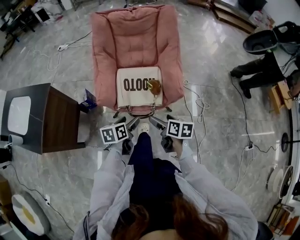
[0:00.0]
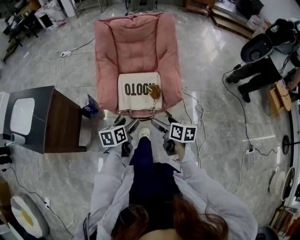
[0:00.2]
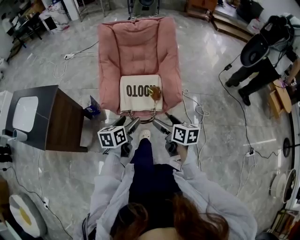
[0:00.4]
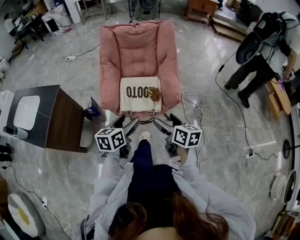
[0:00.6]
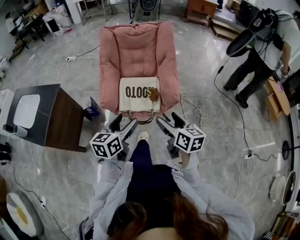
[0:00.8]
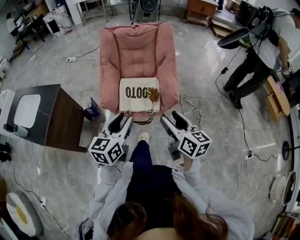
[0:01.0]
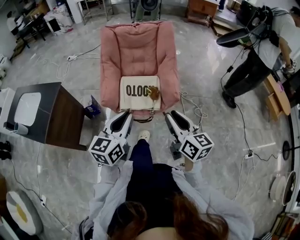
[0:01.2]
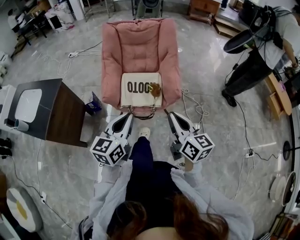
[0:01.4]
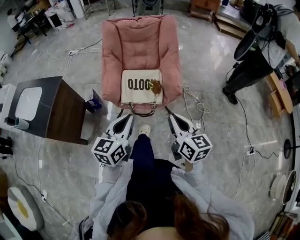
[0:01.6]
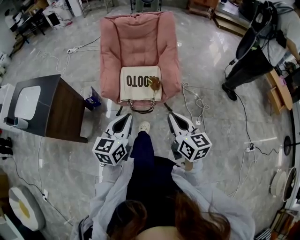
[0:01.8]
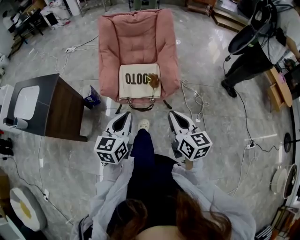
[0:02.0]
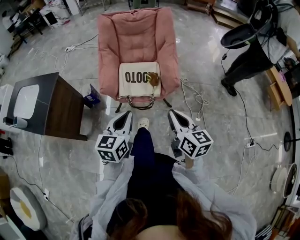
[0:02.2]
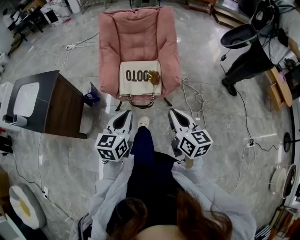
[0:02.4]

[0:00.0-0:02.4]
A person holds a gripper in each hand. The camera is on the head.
0:00.0 to 0:01.2: The left gripper is displaced upward by about 25 cm, tilts its fingers roughly 30 degrees upward, and closes up. Meanwhile the right gripper moves upward and backward, some 25 cm, changes its angle by some 40 degrees, and closes.
0:01.2 to 0:02.4: The left gripper goes approximately 5 cm downward, while the right gripper moves some 5 cm.

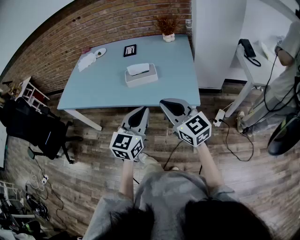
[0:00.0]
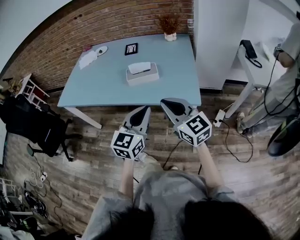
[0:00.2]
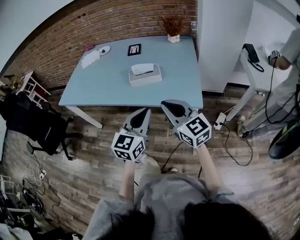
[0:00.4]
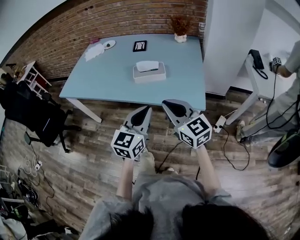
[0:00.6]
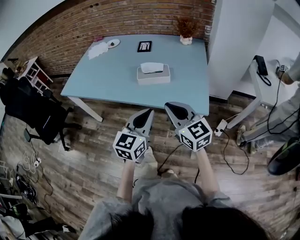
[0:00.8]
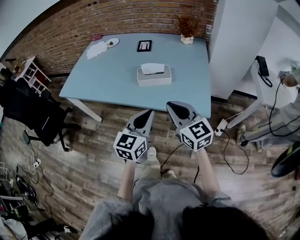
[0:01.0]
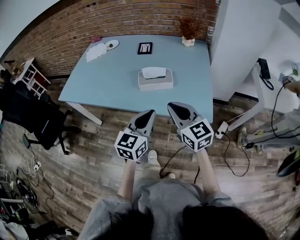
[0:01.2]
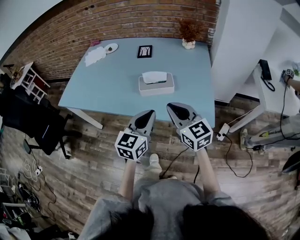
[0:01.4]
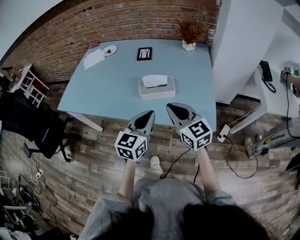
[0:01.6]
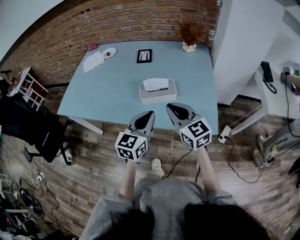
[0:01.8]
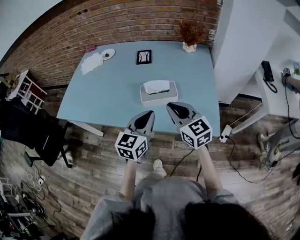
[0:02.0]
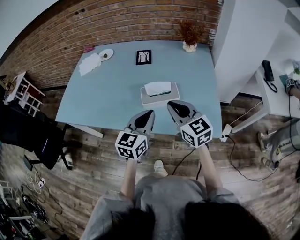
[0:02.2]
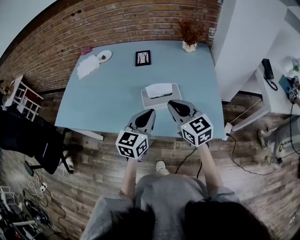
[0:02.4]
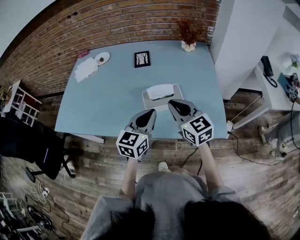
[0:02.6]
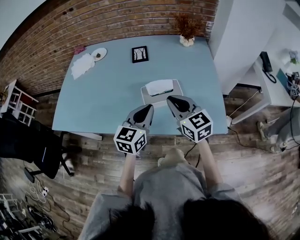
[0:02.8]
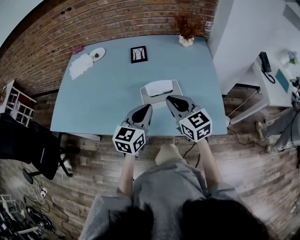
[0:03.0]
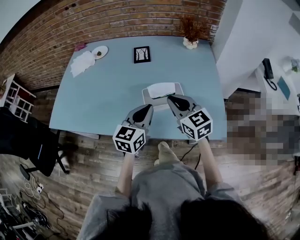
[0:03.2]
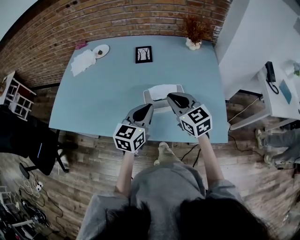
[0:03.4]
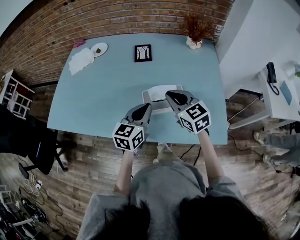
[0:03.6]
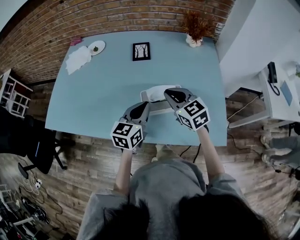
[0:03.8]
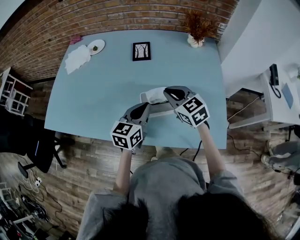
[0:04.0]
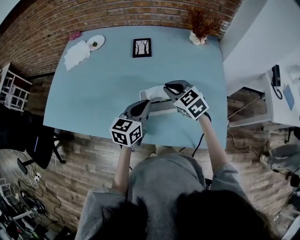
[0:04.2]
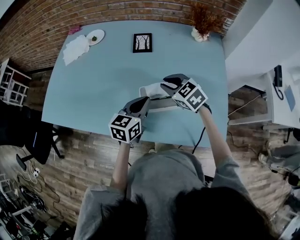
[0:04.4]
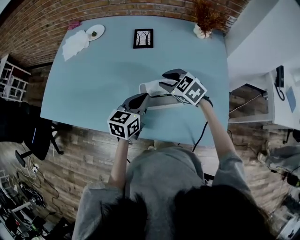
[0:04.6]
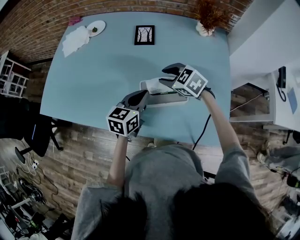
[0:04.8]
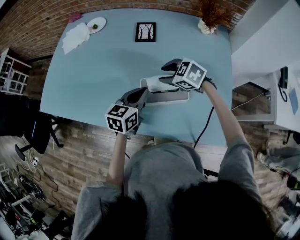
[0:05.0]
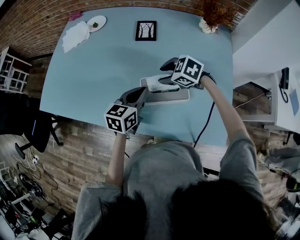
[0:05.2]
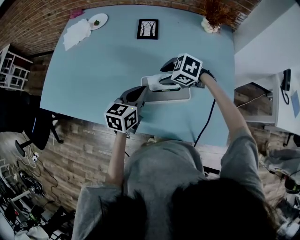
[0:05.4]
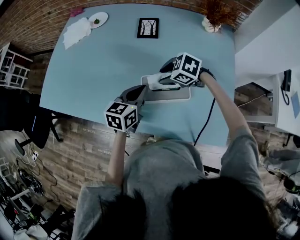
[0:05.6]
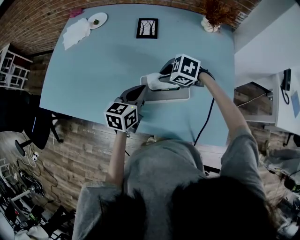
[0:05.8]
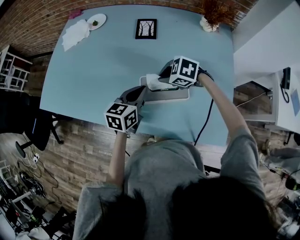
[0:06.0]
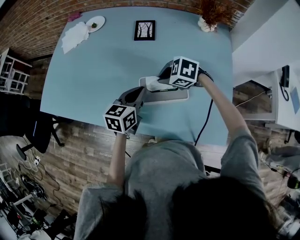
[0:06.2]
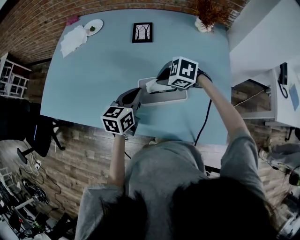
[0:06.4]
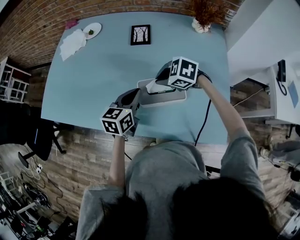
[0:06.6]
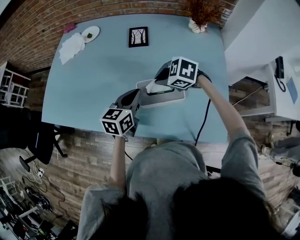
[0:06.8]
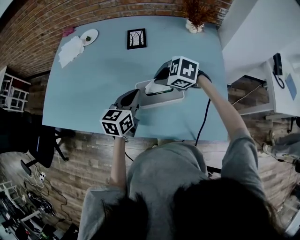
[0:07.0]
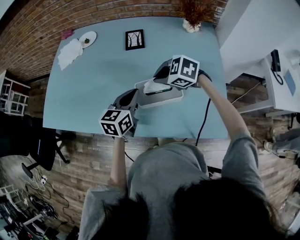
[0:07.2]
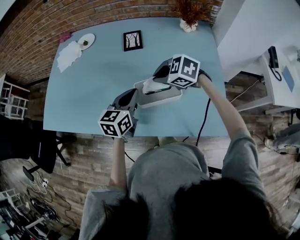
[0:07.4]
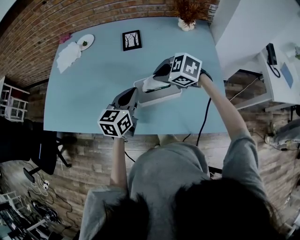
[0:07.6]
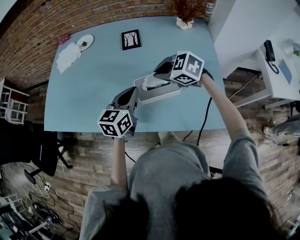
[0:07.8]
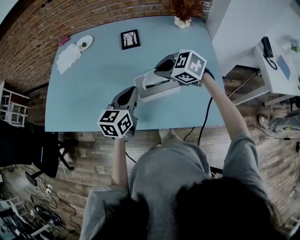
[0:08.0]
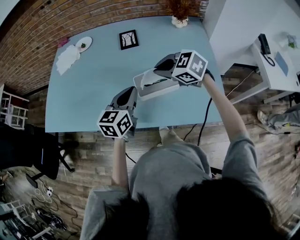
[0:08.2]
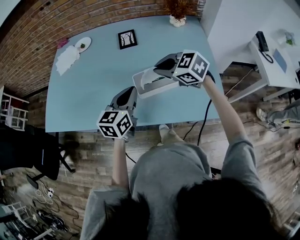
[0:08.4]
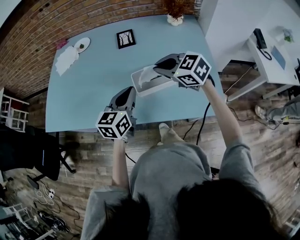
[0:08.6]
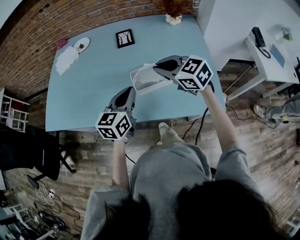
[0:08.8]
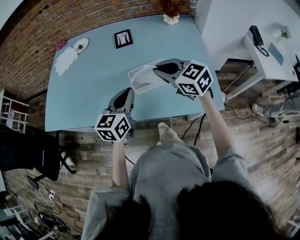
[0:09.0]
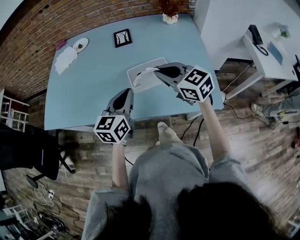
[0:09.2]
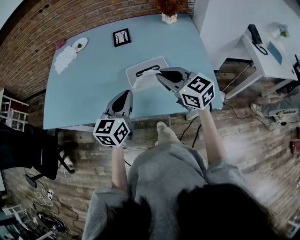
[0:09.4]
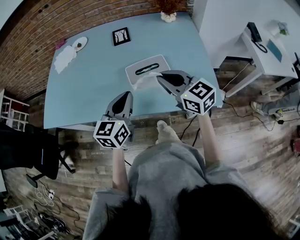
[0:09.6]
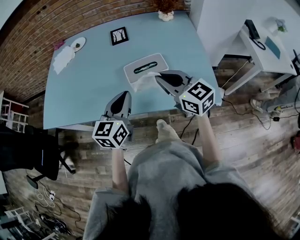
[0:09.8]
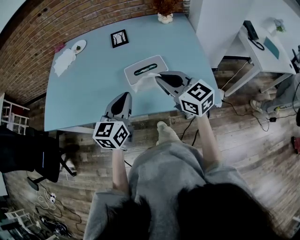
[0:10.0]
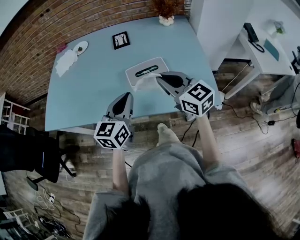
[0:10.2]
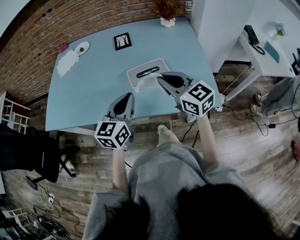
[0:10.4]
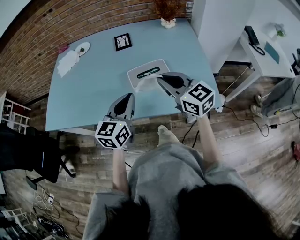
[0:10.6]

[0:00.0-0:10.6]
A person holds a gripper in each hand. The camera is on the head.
0:00.0 to 0:01.6: The two grippers go some 15 cm forward.
0:01.6 to 0:03.0: The left gripper moves forward and to the left, some 15 cm; the right gripper heads forward, covering roughly 15 cm.
0:03.0 to 0:04.6: The grippers both shift forward and downward by about 15 cm. The right gripper swivels about 40 degrees, and opens its fingers.
0:04.6 to 0:06.0: The right gripper moves about 5 cm, swivels some 30 degrees, and closes its fingers.
0:06.0 to 0:07.6: The right gripper goes approximately 10 cm upward, while the left gripper shifts approximately 5 cm upward.
0:07.6 to 0:09.0: The left gripper shifts roughly 10 cm backward; the right gripper heads backward and upward, covering about 10 cm, and rotates roughly 40 degrees.
0:09.0 to 0:10.6: The grippers both shift backward by some 5 cm.

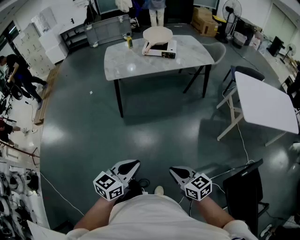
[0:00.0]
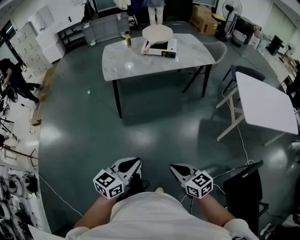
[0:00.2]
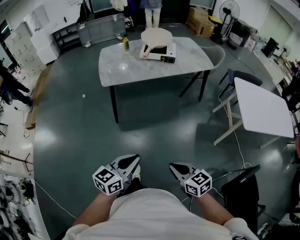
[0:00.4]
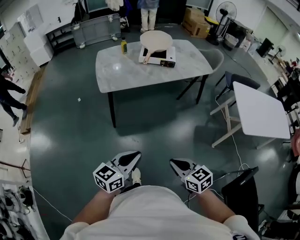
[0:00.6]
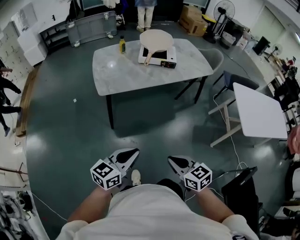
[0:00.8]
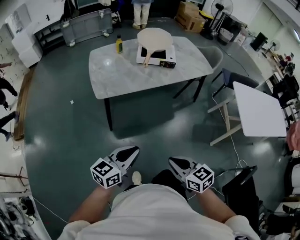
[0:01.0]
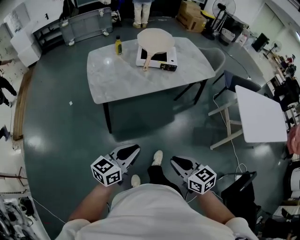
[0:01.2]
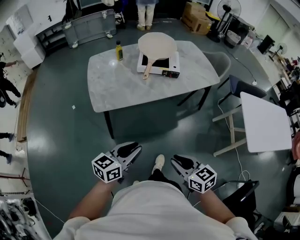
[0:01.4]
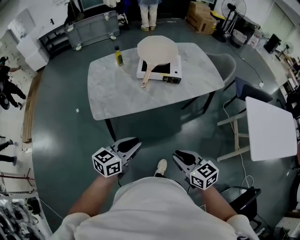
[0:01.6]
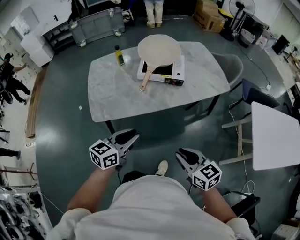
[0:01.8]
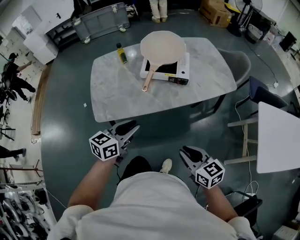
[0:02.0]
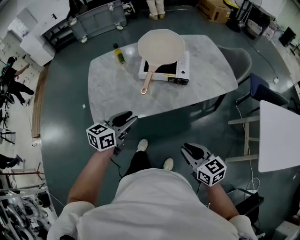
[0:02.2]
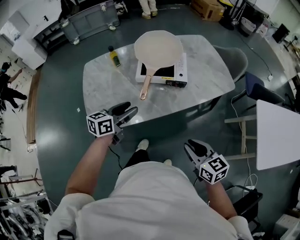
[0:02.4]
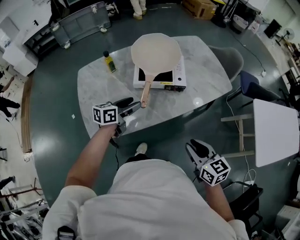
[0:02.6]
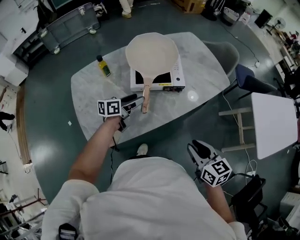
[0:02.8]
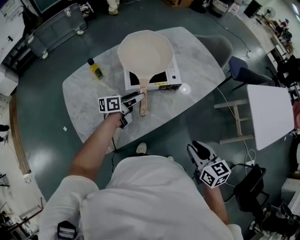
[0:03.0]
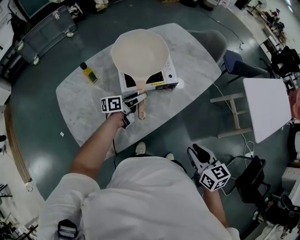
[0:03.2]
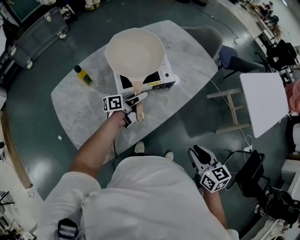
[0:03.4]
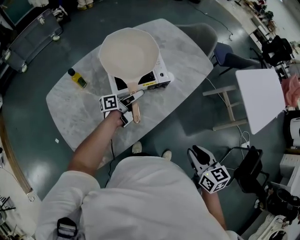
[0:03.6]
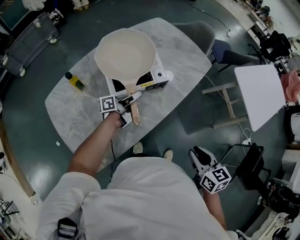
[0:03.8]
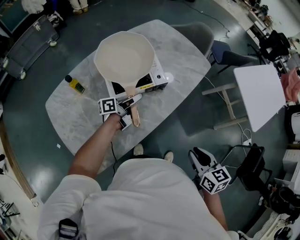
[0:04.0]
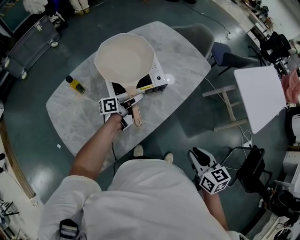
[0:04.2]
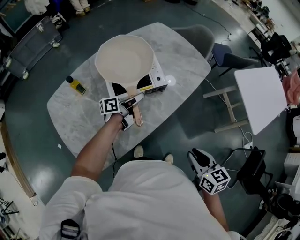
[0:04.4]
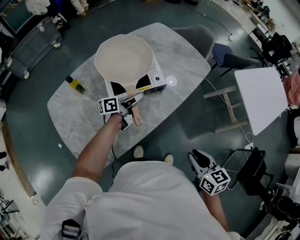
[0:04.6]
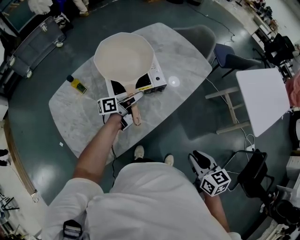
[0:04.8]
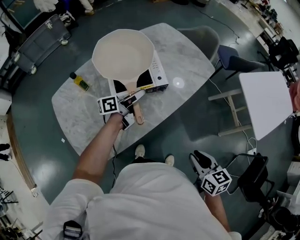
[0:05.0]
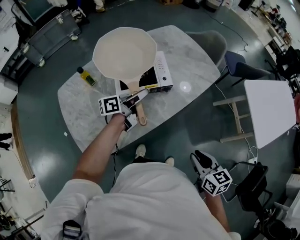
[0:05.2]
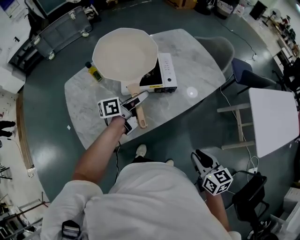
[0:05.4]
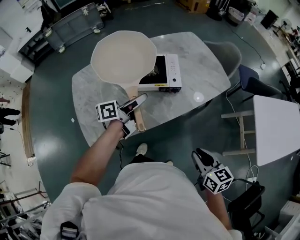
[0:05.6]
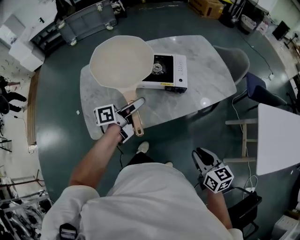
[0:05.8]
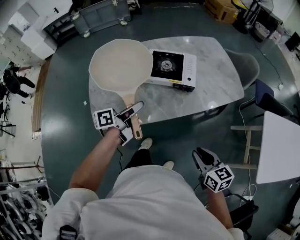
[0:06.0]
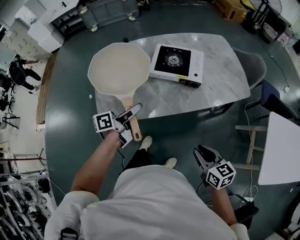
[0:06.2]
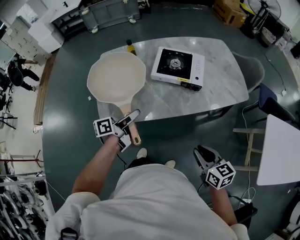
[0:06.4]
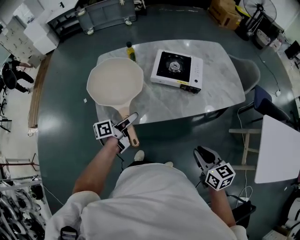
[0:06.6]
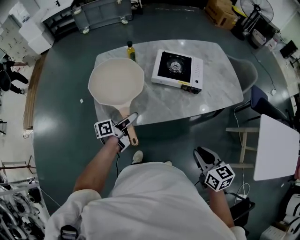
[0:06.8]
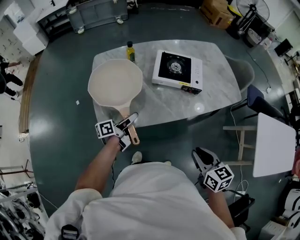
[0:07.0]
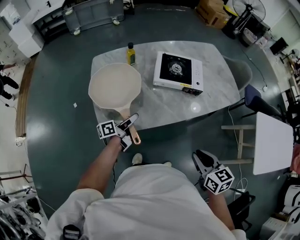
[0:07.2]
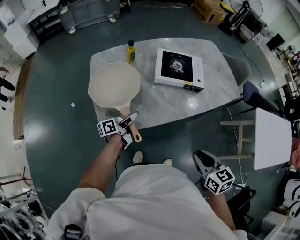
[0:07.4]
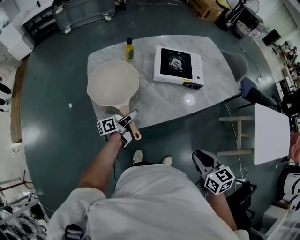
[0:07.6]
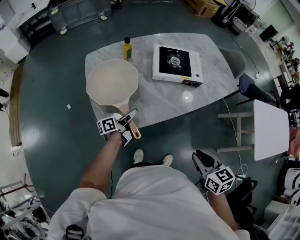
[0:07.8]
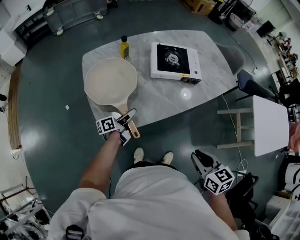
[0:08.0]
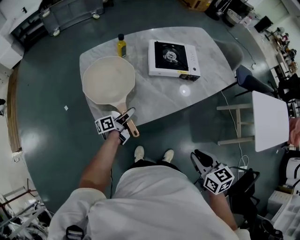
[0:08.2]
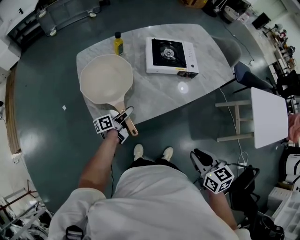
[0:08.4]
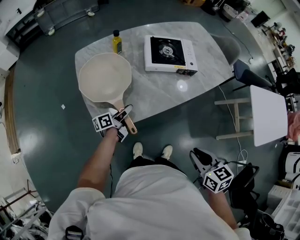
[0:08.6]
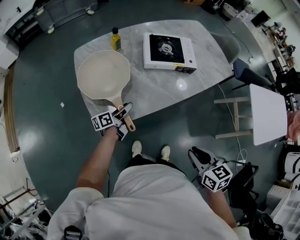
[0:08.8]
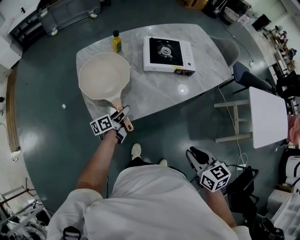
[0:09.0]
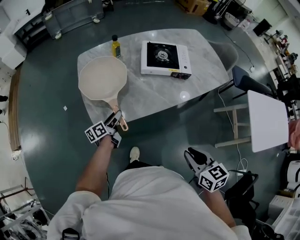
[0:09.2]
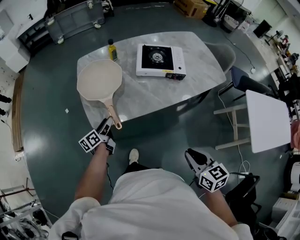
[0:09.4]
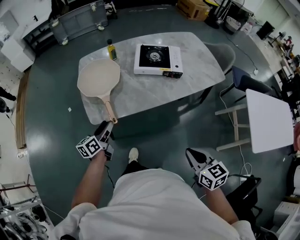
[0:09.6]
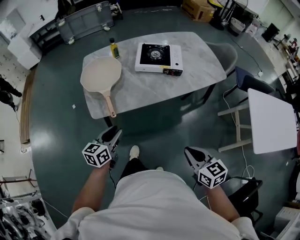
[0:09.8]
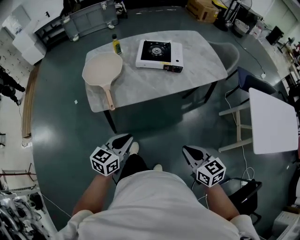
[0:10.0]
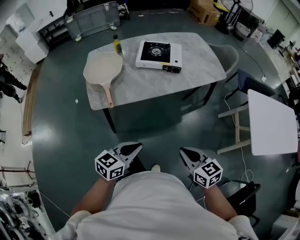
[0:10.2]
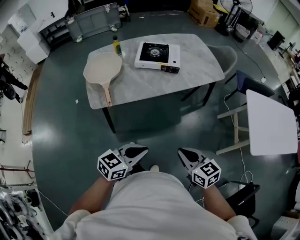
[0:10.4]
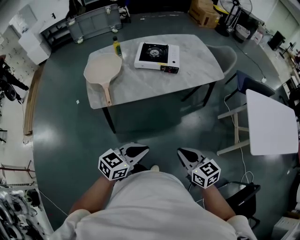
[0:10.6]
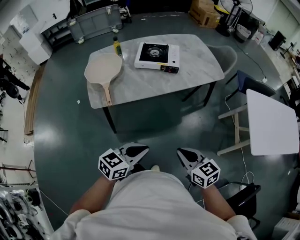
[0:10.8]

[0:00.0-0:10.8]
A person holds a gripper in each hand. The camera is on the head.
0:00.0 to 0:01.6: The pair of grippers is taken forward, approximately 50 cm.
0:01.6 to 0:03.0: The left gripper changes place by about 50 cm, swivels roughly 30 degrees, and opens; the right gripper changes place by about 20 cm, and swivels approximately 30 degrees.
0:03.0 to 0:04.6: The left gripper heads forward and to the right, covering some 10 cm, and closes up.
0:04.6 to 0:06.2: The left gripper ends up about 25 cm from where it was, and swivels approximately 40 degrees. Meanwhile the right gripper changes place by roughly 5 cm, and changes its angle by some 40 degrees.
0:06.2 to 0:07.8: The right gripper shifts some 15 cm to the left. The left gripper goes approximately 20 cm downward and to the left.
0:07.8 to 0:09.2: The left gripper changes place by some 5 cm, turns by some 20 degrees, and opens up.
0:09.2 to 0:10.8: The left gripper shifts about 50 cm backward, to the right and upward, rolls clockwise, seen from behind, by about 50 degrees, and closes, while the right gripper heads to the right and backward, covering some 15 cm.
